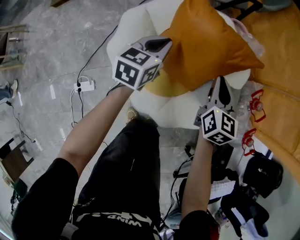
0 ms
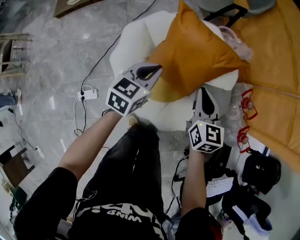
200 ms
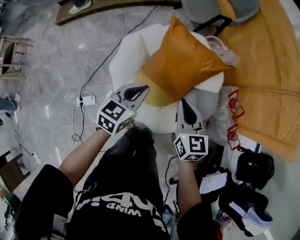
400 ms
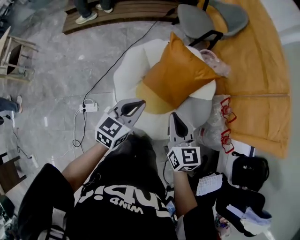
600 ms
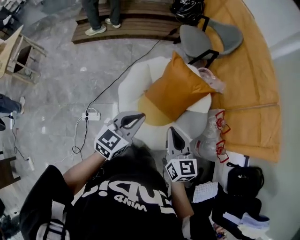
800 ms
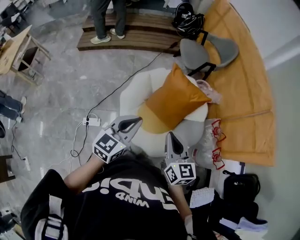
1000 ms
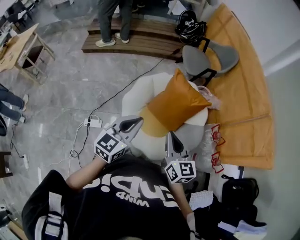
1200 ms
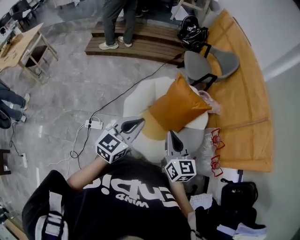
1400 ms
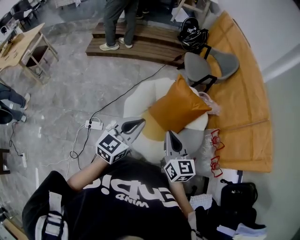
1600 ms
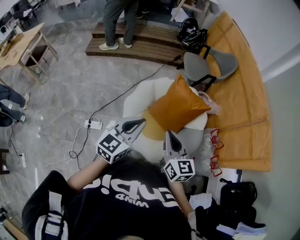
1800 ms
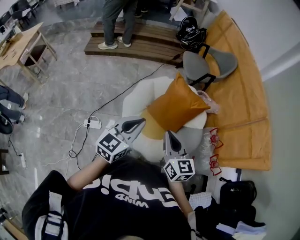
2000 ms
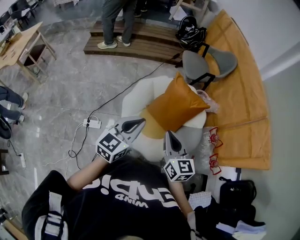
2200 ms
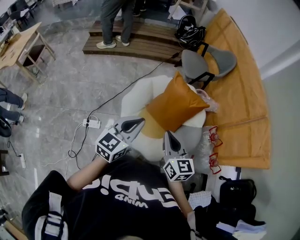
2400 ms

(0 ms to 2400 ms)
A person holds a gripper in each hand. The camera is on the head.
0 ms - 1200 ms: Both grippers travel together upward and backward, some 50 cm. The left gripper rotates roughly 20 degrees. The right gripper turns by approximately 30 degrees.
1200 ms - 2400 ms: The grippers move only a little.

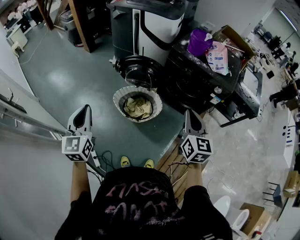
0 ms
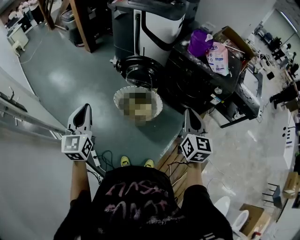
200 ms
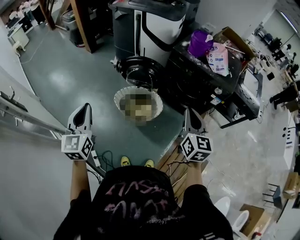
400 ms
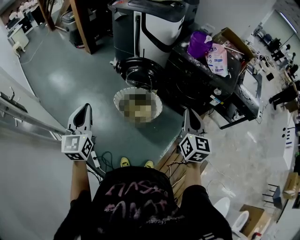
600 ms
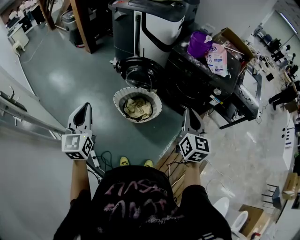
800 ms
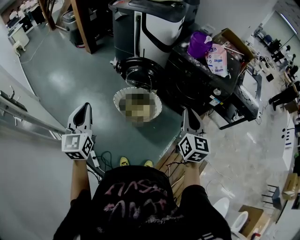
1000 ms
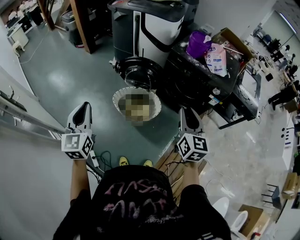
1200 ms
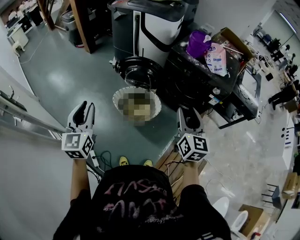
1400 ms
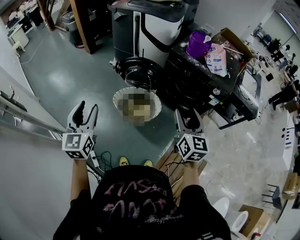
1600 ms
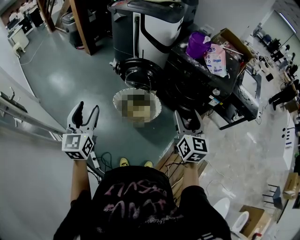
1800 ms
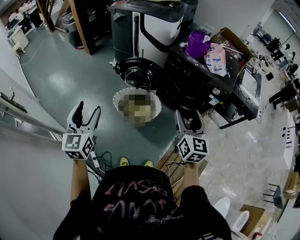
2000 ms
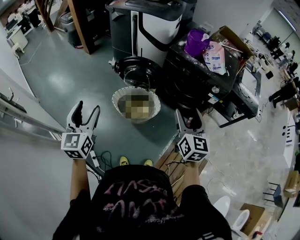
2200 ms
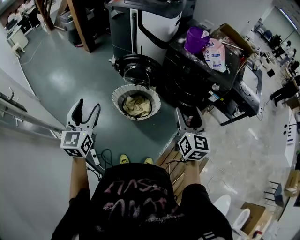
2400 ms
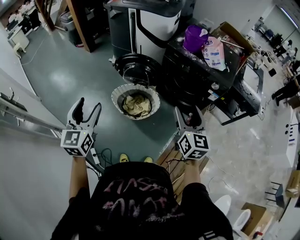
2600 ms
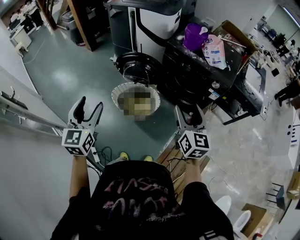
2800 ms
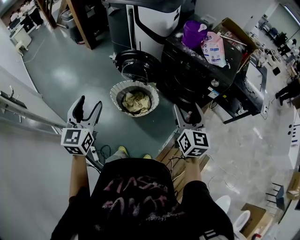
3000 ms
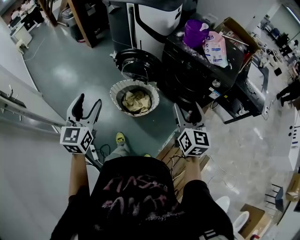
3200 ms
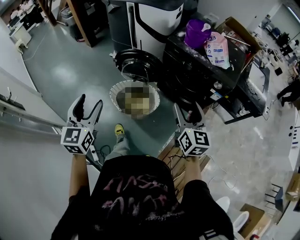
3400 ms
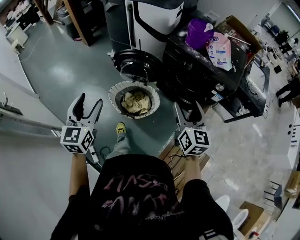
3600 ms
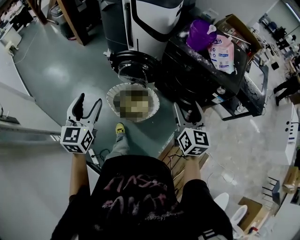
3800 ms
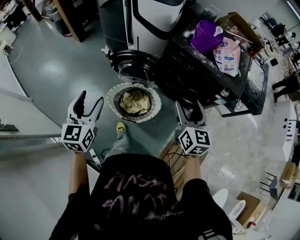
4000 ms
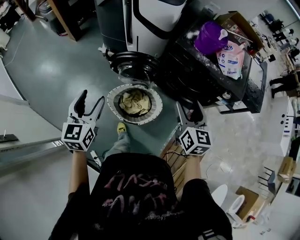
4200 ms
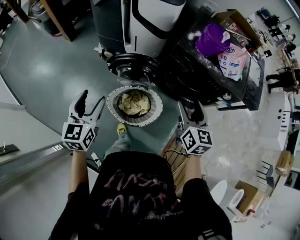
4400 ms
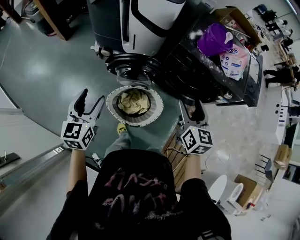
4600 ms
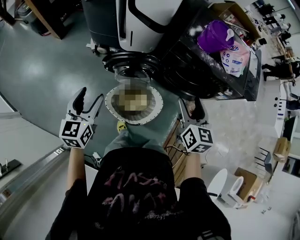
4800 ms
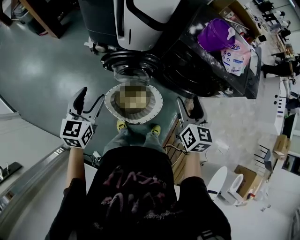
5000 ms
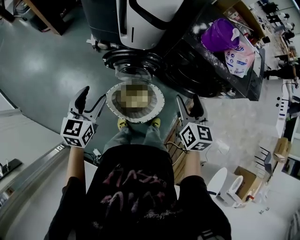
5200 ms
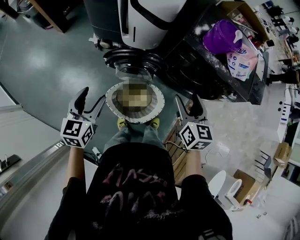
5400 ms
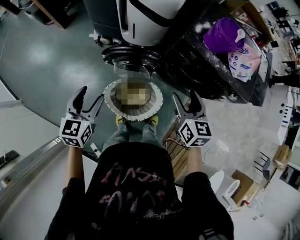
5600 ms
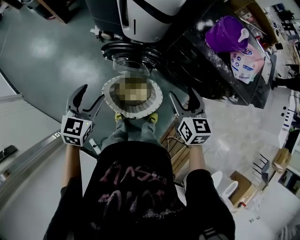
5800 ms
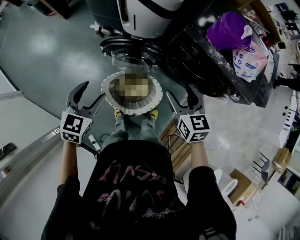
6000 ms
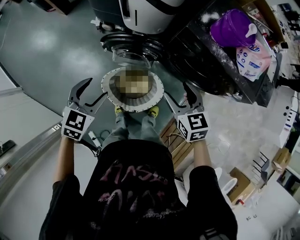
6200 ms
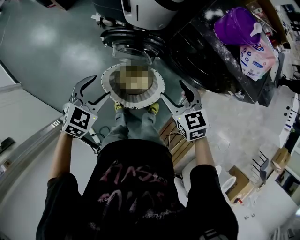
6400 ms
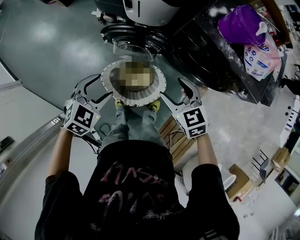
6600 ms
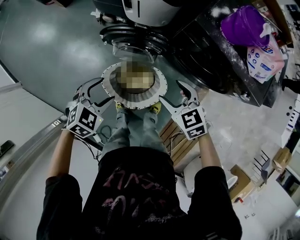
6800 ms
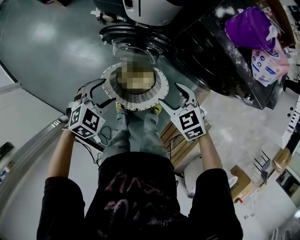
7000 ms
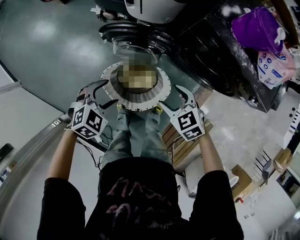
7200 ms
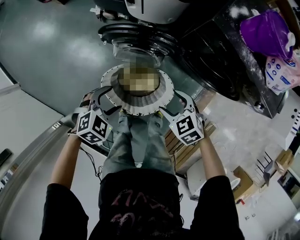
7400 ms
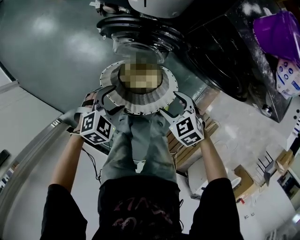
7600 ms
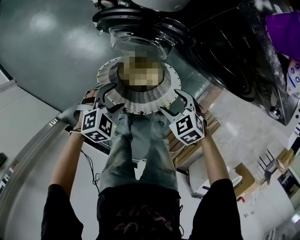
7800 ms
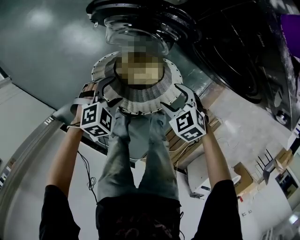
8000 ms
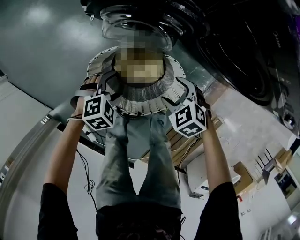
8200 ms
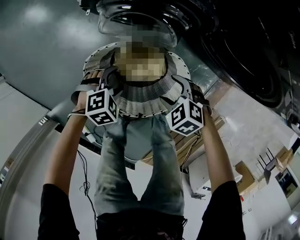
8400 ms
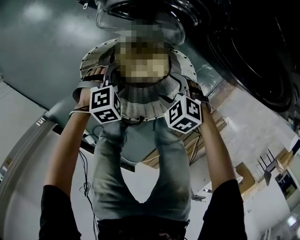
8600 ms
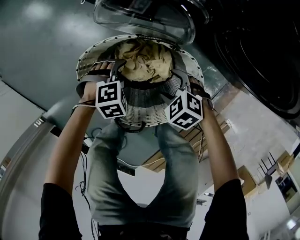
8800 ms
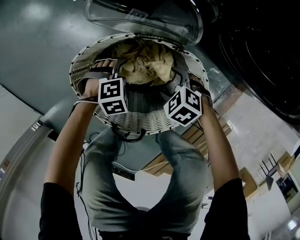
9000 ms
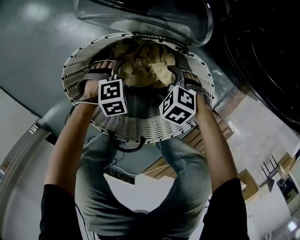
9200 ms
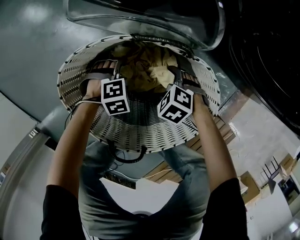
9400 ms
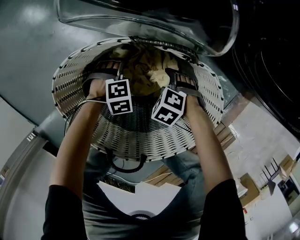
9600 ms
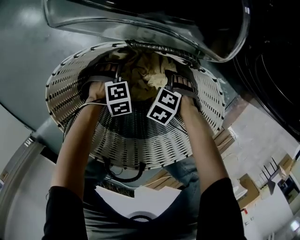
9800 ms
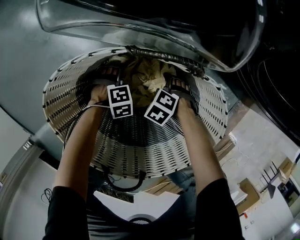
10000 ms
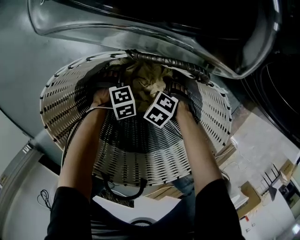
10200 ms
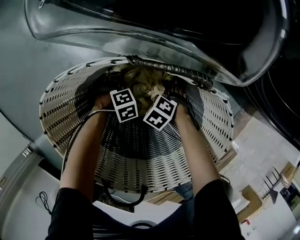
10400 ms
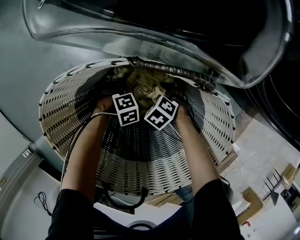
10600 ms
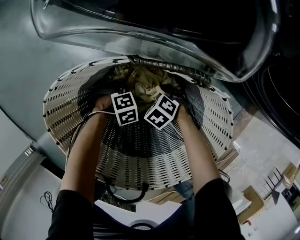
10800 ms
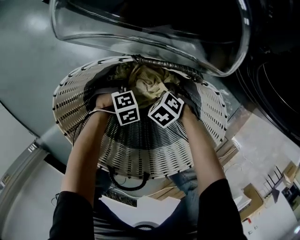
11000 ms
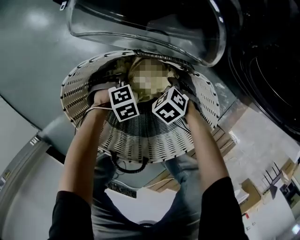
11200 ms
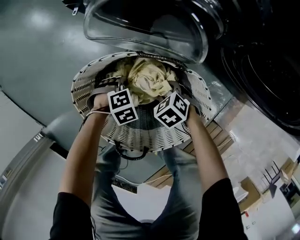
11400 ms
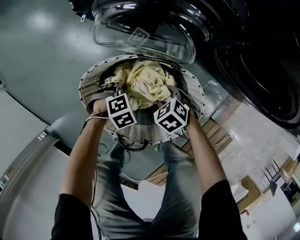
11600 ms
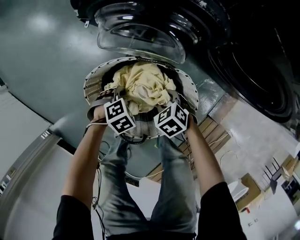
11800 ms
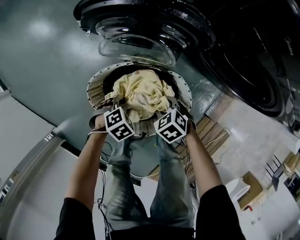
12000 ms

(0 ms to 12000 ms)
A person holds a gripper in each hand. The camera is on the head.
0 ms - 1600 ms: The left gripper opens. Meanwhile the right gripper opens.
1600 ms - 3000 ms: The two grippers go about 10 cm to the right.
3000 ms - 4400 ms: The grippers both shift forward and to the left by some 25 cm.
4400 ms - 6000 ms: The left gripper goes approximately 10 cm downward and forward, and swivels approximately 20 degrees. Meanwhile the right gripper heads forward and downward, covering roughly 15 cm, and swivels roughly 20 degrees.
6000 ms - 7600 ms: Both grippers travel together downward, roughly 25 cm. The right gripper changes its angle by roughly 40 degrees. The left gripper swivels roughly 40 degrees.
7600 ms - 9000 ms: Both grippers travel together downward, some 35 cm. The left gripper rotates approximately 20 degrees, while the right gripper turns by roughly 20 degrees.
9000 ms - 10400 ms: Both grippers move downward, about 25 cm.
10400 ms - 12000 ms: Both grippers move upward, roughly 35 cm. The left gripper closes up, while the right gripper changes its angle by about 20 degrees, and closes up.

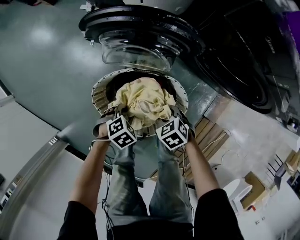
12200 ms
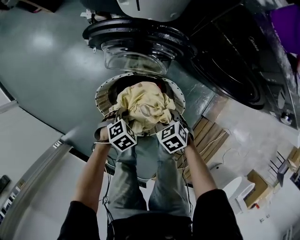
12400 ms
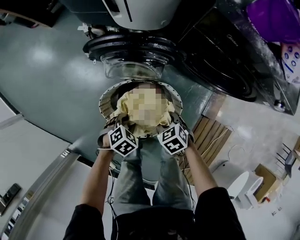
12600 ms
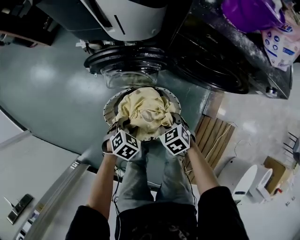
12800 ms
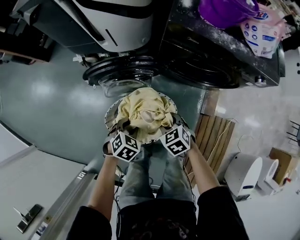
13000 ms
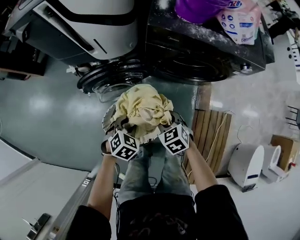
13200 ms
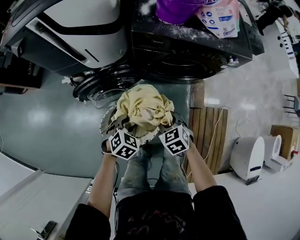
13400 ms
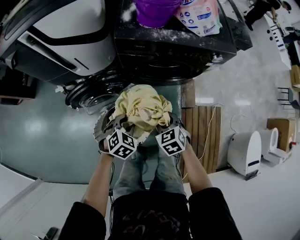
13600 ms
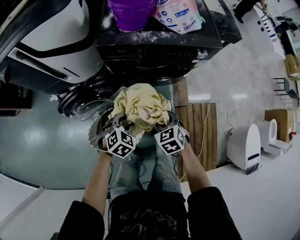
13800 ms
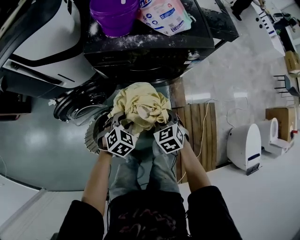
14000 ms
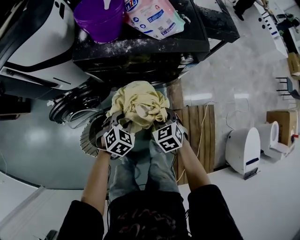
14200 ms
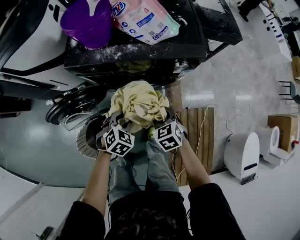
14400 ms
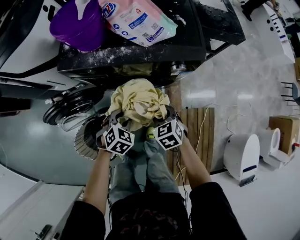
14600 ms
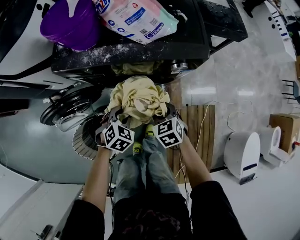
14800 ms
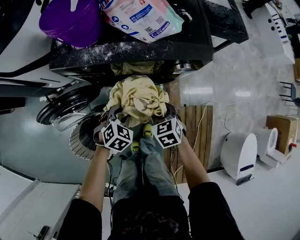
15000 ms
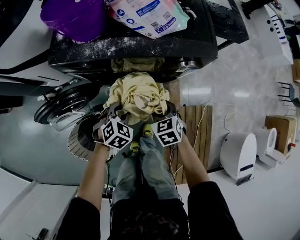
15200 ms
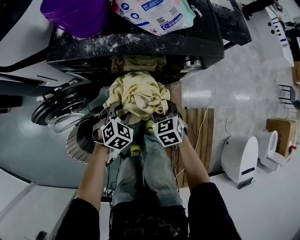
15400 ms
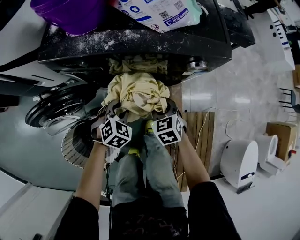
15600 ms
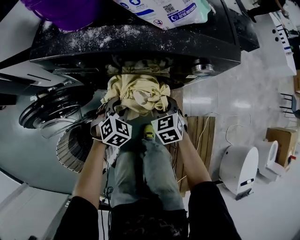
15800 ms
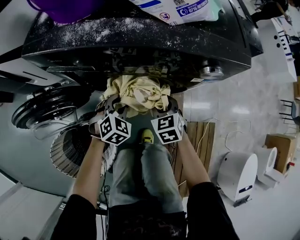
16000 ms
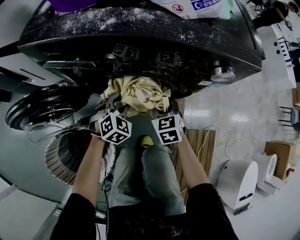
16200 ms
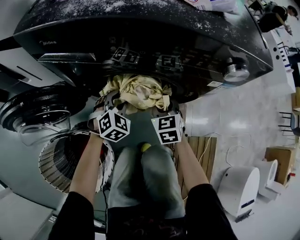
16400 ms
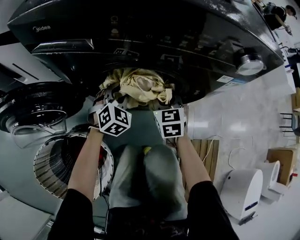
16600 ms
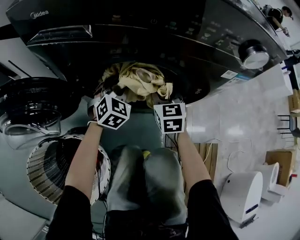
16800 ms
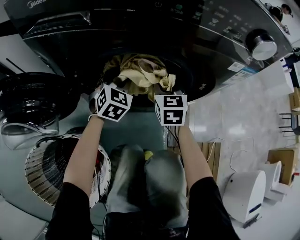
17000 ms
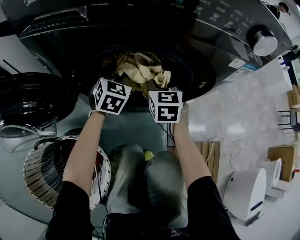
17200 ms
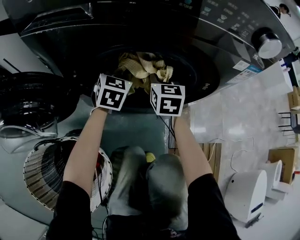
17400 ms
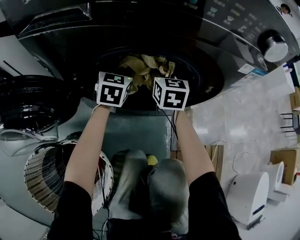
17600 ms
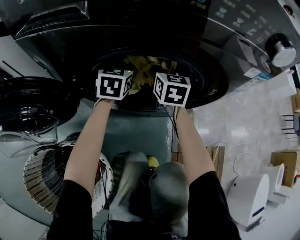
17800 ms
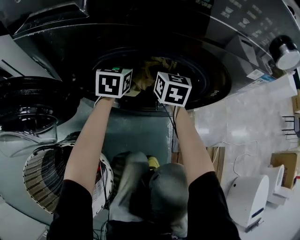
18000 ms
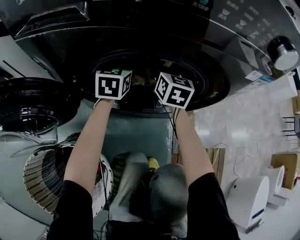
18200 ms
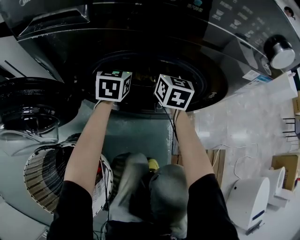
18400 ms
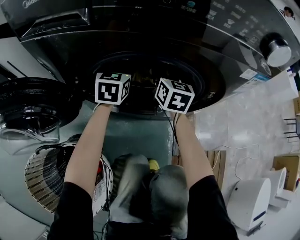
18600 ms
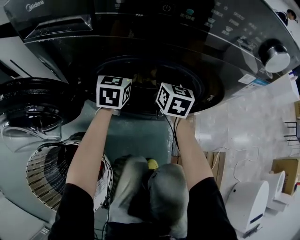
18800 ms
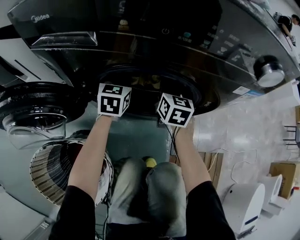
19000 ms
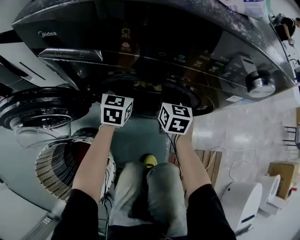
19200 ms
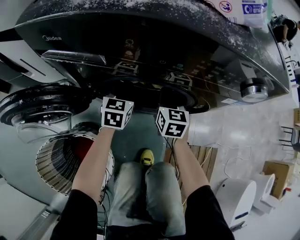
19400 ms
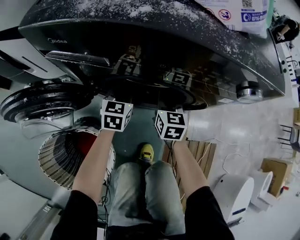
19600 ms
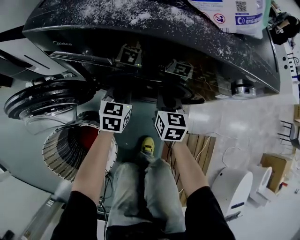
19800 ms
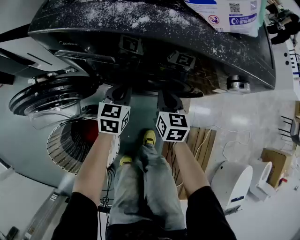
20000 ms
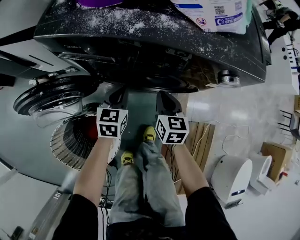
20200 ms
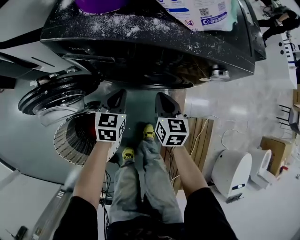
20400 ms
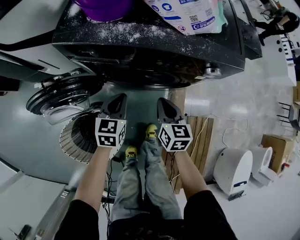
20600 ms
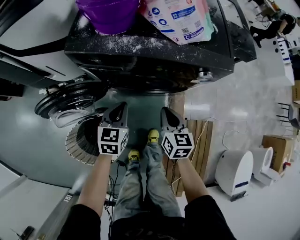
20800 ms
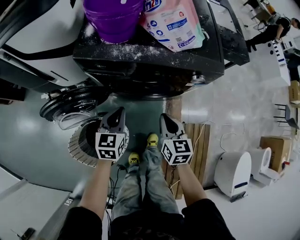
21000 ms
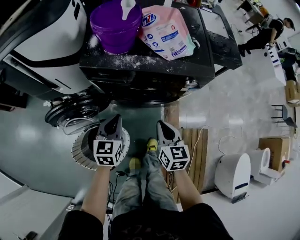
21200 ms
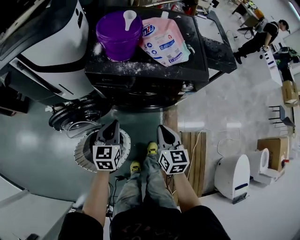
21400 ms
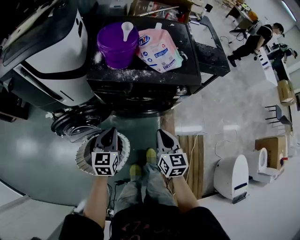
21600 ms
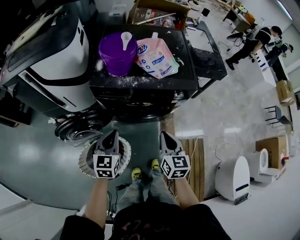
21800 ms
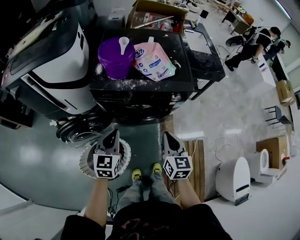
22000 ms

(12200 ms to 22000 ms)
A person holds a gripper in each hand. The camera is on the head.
12200 ms - 13600 ms: Both grippers move upward, some 25 cm. The right gripper changes its angle by some 40 degrees, while the left gripper rotates roughly 30 degrees.
13600 ms - 15000 ms: Both grippers travel together to the right and forward, about 25 cm.
15000 ms - 16400 ms: The grippers both shift downward and forward by roughly 25 cm. The left gripper rotates about 20 degrees.
16400 ms - 17800 ms: Both grippers move forward, roughly 15 cm. The left gripper rotates roughly 40 degrees. The right gripper turns by roughly 20 degrees.
17800 ms - 19200 ms: Both grippers move backward, about 5 cm.
19200 ms - 20600 ms: The two grippers go about 25 cm upward and backward.
20600 ms - 22000 ms: The left gripper shifts approximately 25 cm upward, while the right gripper travels upward and backward by approximately 30 cm.
